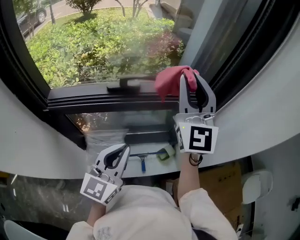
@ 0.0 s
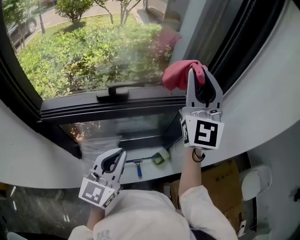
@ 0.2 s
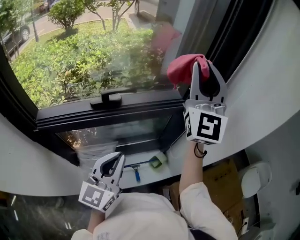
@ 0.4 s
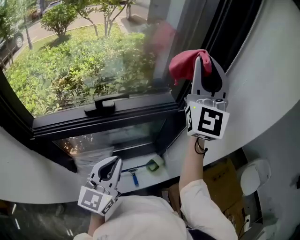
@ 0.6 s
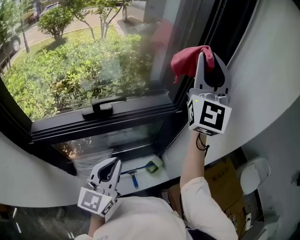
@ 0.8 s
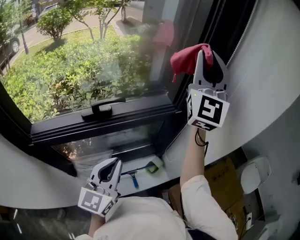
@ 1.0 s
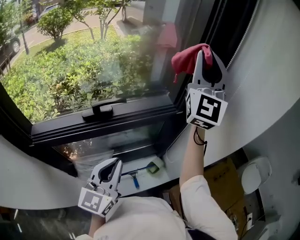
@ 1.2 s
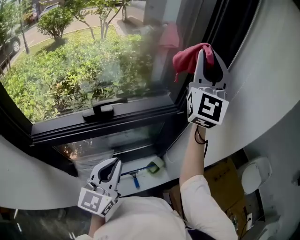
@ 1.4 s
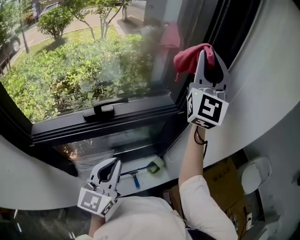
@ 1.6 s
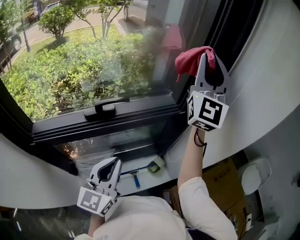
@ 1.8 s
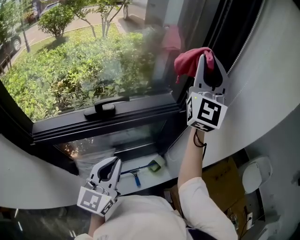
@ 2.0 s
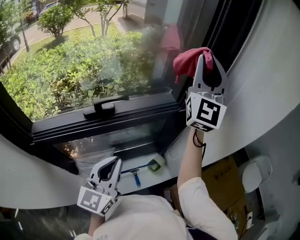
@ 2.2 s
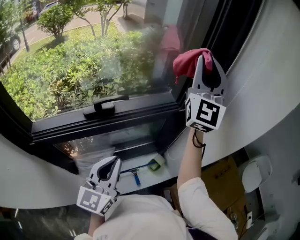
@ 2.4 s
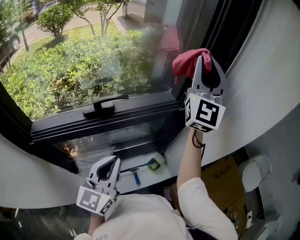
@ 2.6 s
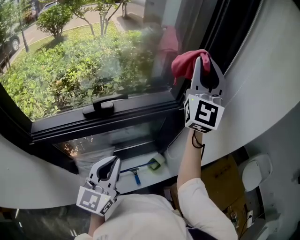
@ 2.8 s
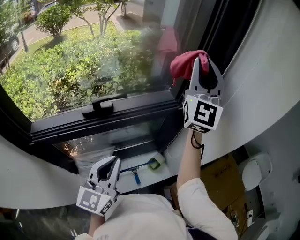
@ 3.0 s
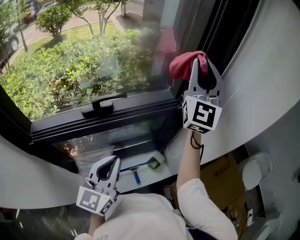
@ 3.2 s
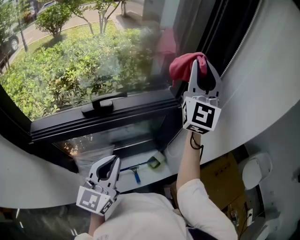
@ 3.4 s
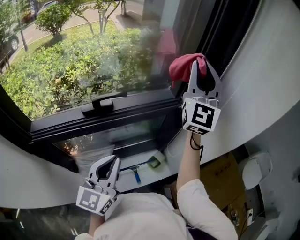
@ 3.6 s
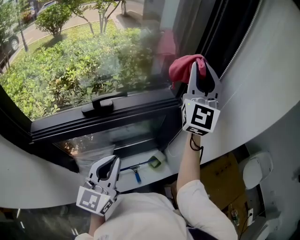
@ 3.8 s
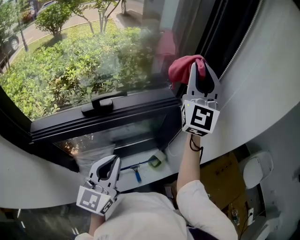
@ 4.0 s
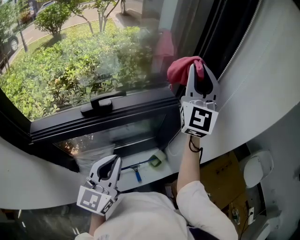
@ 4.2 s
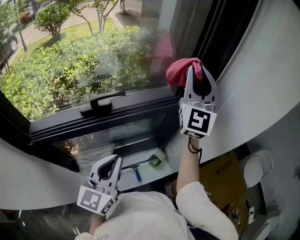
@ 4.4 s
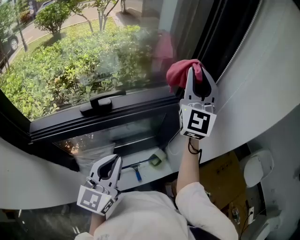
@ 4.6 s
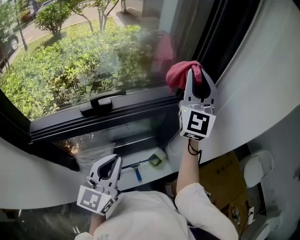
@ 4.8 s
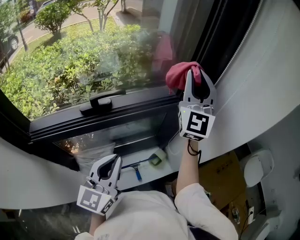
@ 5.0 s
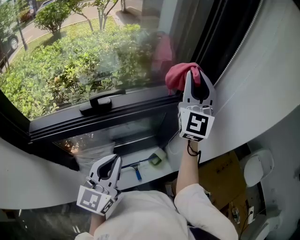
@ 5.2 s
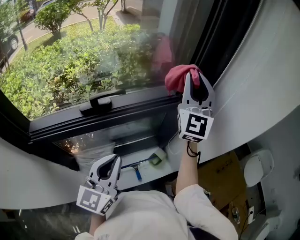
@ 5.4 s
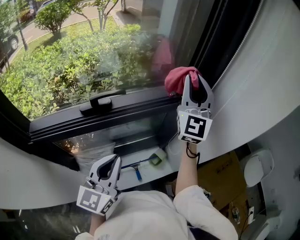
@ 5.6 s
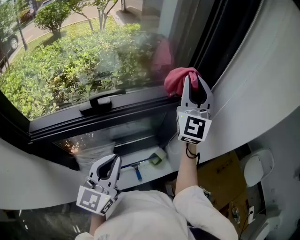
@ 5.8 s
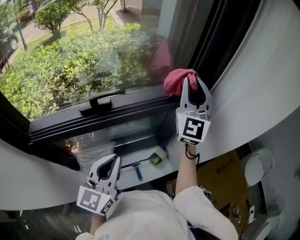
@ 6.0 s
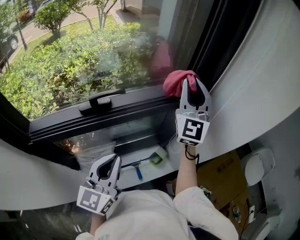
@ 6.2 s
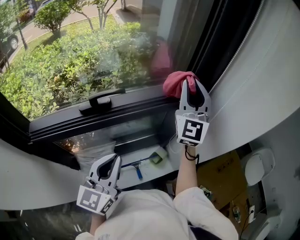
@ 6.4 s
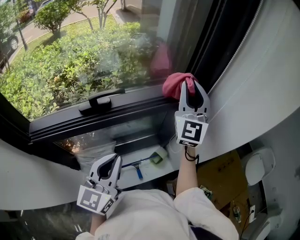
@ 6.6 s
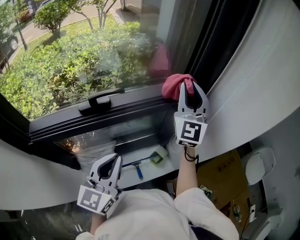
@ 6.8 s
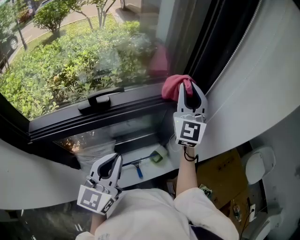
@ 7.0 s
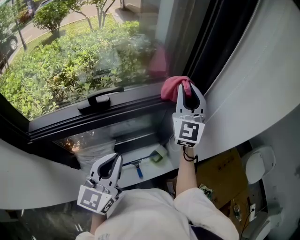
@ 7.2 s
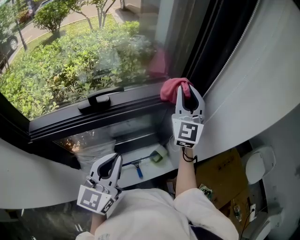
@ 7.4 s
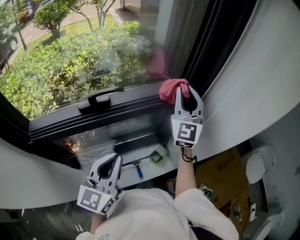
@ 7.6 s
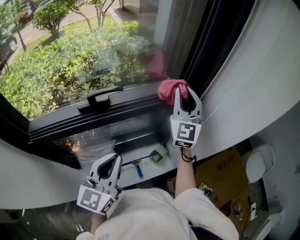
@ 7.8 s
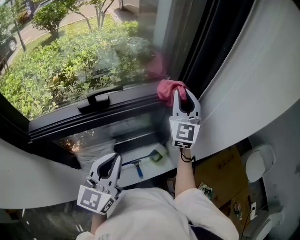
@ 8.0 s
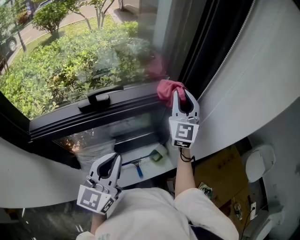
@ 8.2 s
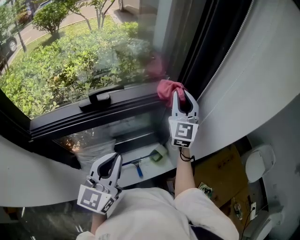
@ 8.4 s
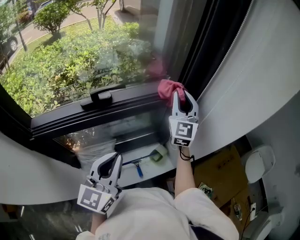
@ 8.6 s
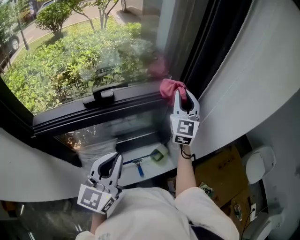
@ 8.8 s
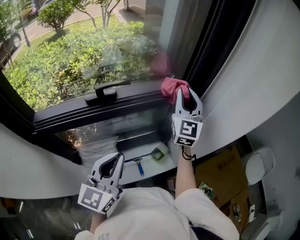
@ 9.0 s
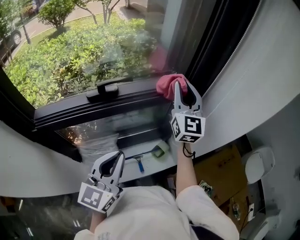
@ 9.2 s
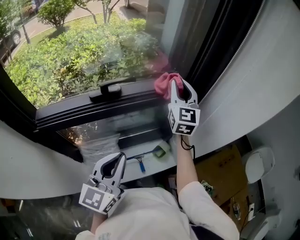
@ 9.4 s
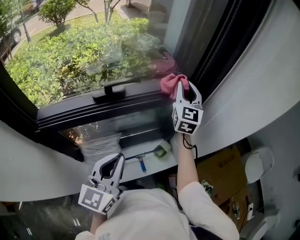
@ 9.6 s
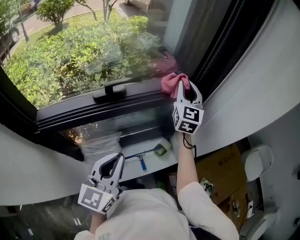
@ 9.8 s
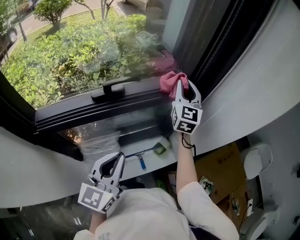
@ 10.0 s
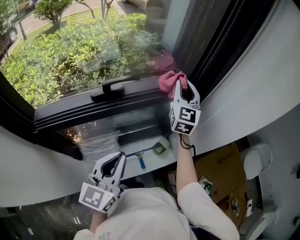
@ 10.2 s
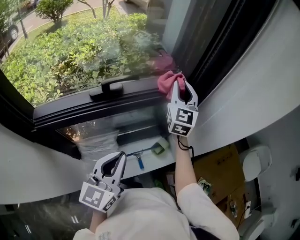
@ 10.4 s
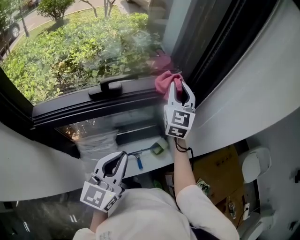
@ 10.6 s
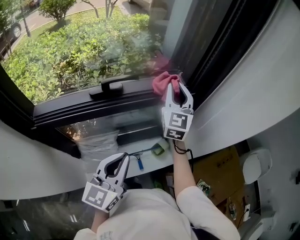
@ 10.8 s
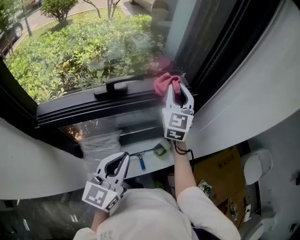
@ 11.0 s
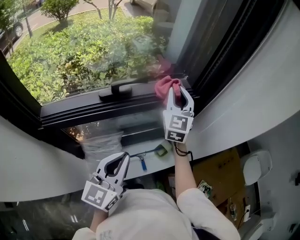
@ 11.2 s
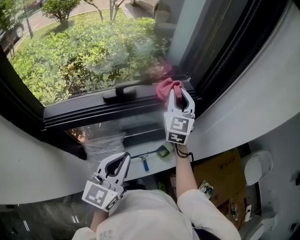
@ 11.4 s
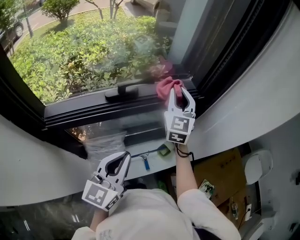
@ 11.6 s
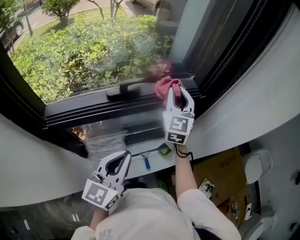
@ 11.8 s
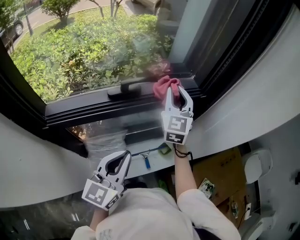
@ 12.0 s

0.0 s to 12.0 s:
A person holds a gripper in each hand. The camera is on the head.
0.0 to 1.6 s: The right gripper travels upward, to the right and forward by some 20 cm, and changes its angle by some 30 degrees.
1.6 to 3.0 s: The grippers stay close to where they were, moving slightly.
3.0 to 4.4 s: The grippers stay close to where they were, moving slightly.
4.4 to 6.0 s: The right gripper shifts approximately 5 cm downward.
6.0 to 7.6 s: The right gripper is displaced downward by about 5 cm.
7.6 to 9.0 s: The grippers stay close to where they were, moving slightly.
9.0 to 10.4 s: The right gripper changes place by about 5 cm.
10.4 to 12.0 s: The right gripper moves to the left, about 10 cm.

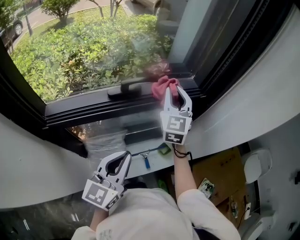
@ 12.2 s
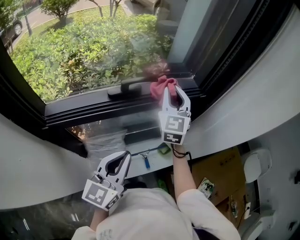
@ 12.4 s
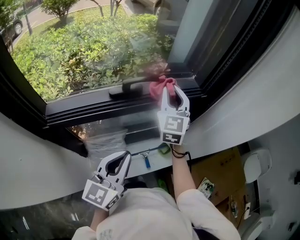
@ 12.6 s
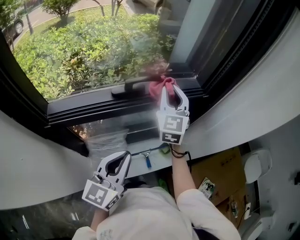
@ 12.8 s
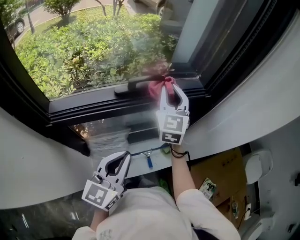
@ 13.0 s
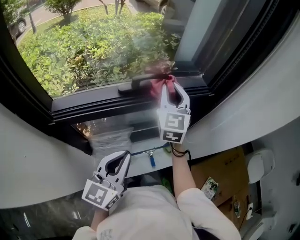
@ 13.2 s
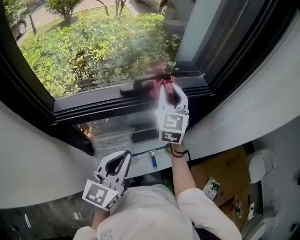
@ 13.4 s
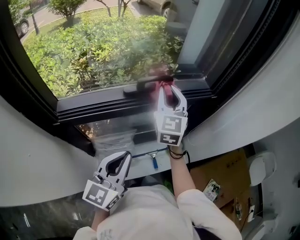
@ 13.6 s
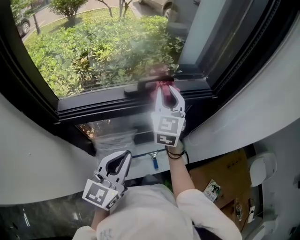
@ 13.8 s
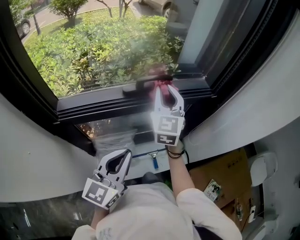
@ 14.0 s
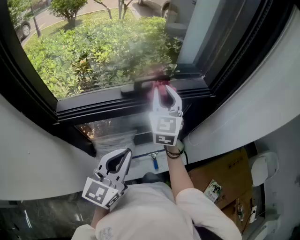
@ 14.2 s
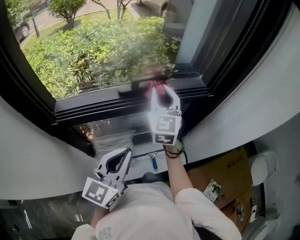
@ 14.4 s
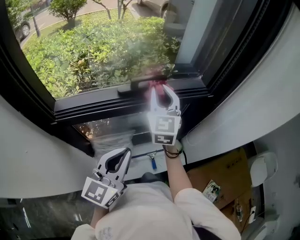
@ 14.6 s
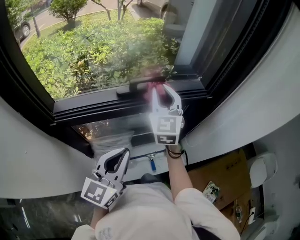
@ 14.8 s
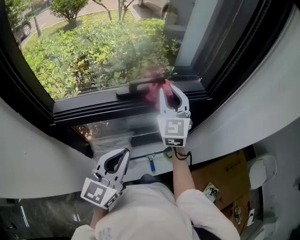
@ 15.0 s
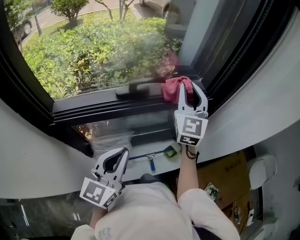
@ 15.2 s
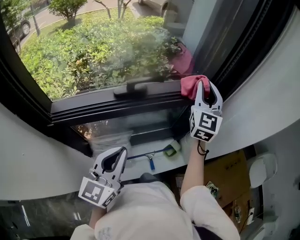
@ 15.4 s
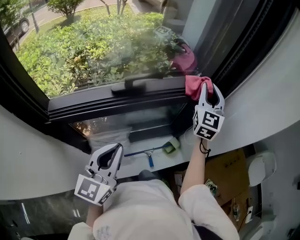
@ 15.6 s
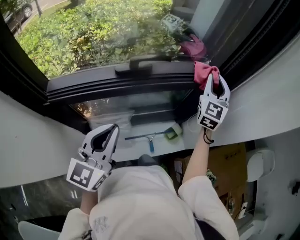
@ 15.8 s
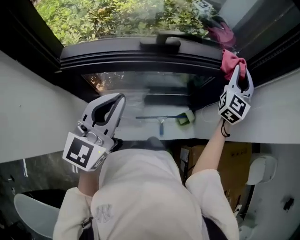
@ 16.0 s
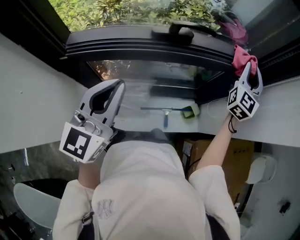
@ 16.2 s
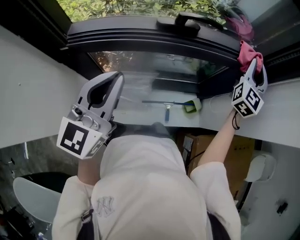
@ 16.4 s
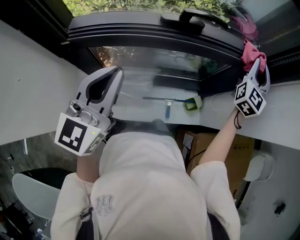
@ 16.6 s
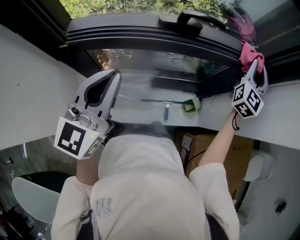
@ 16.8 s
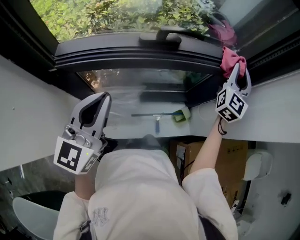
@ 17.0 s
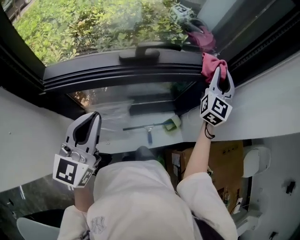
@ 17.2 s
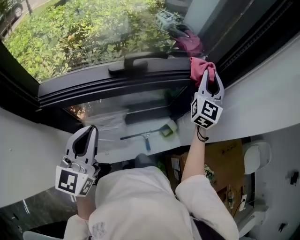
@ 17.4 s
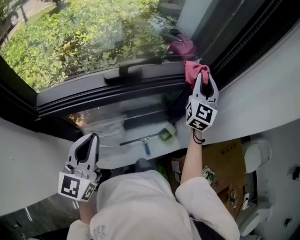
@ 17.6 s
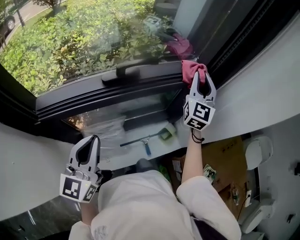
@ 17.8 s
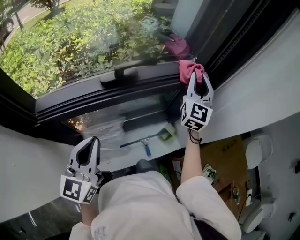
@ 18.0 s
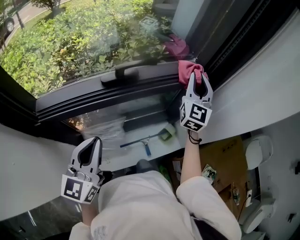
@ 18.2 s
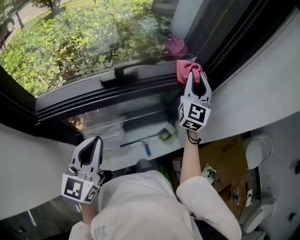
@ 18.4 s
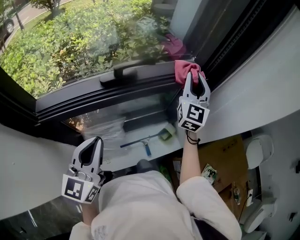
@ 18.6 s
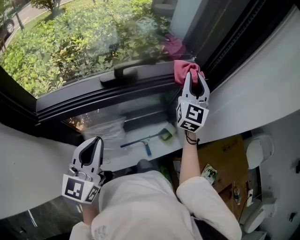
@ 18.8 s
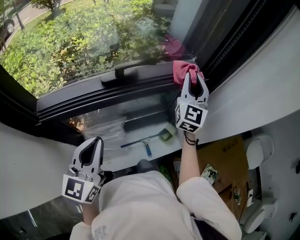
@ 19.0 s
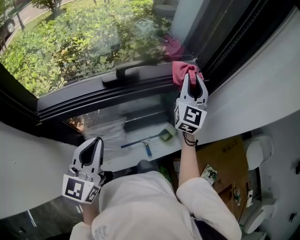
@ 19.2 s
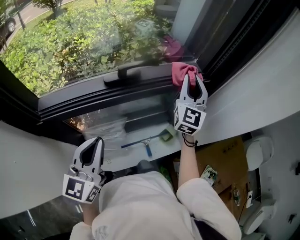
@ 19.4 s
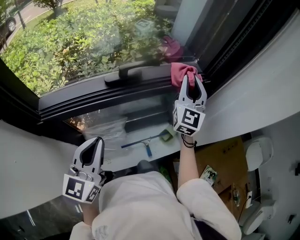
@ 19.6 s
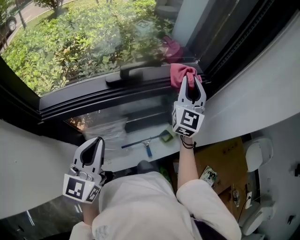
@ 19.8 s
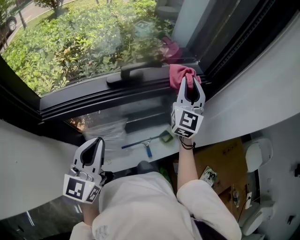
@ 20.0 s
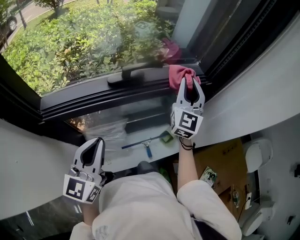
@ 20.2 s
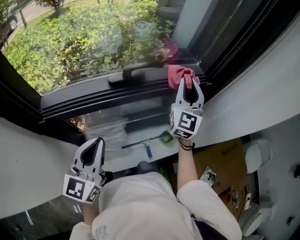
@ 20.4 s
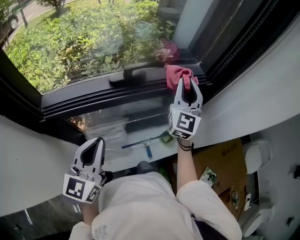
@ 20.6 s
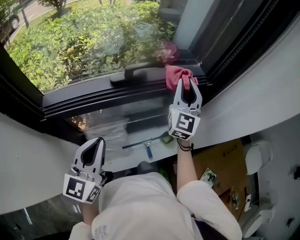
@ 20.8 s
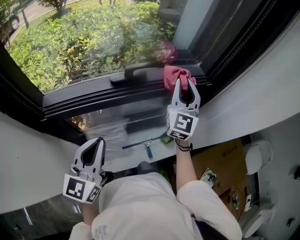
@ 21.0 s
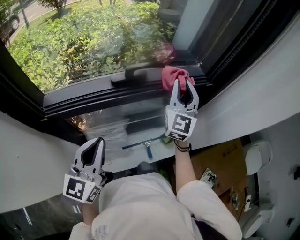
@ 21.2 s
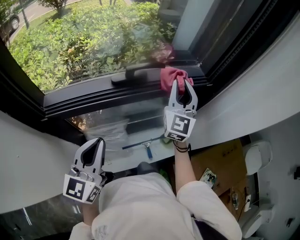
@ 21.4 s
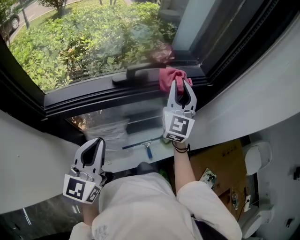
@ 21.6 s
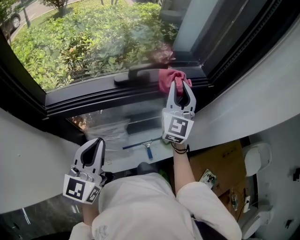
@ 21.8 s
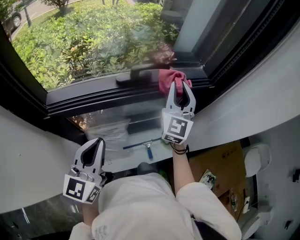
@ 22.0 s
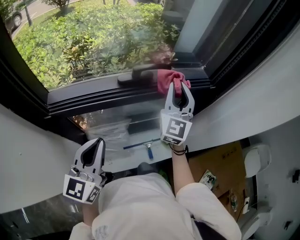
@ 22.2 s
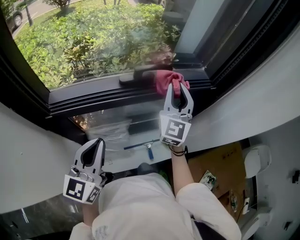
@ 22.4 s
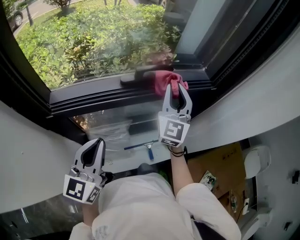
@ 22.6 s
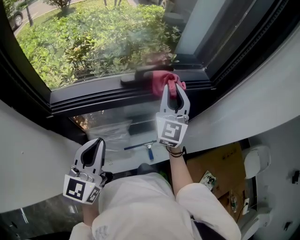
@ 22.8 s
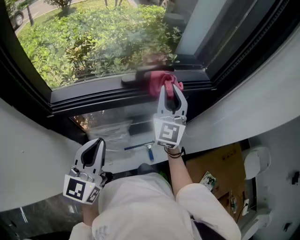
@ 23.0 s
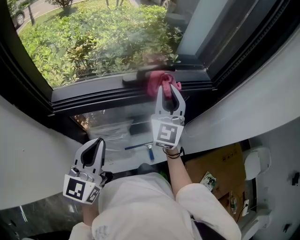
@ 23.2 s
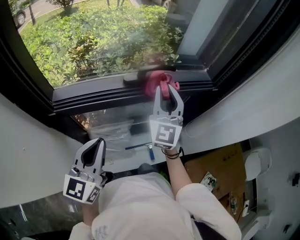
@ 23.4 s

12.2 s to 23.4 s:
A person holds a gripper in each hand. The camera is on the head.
12.2 to 13.8 s: The right gripper is displaced to the left by approximately 10 cm.
13.8 to 15.4 s: The right gripper goes approximately 15 cm to the right.
15.4 to 17.0 s: The left gripper goes about 10 cm to the left, while the right gripper heads downward, covering about 5 cm.
17.0 to 18.6 s: The grippers stay close to where they were, moving slightly.
18.6 to 20.2 s: The grippers stay close to where they were, moving slightly.
20.2 to 21.8 s: The right gripper changes place by some 5 cm.
21.8 to 23.4 s: The right gripper is displaced to the left by about 10 cm.

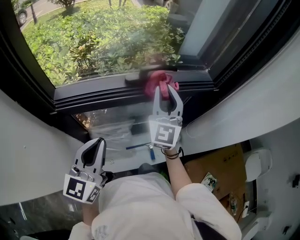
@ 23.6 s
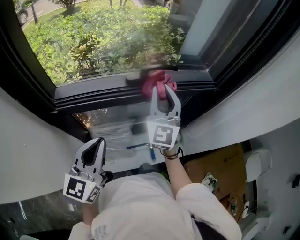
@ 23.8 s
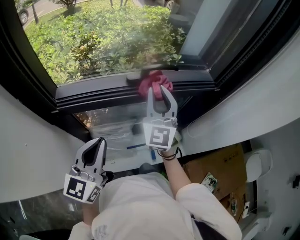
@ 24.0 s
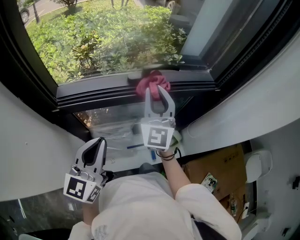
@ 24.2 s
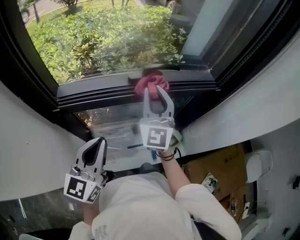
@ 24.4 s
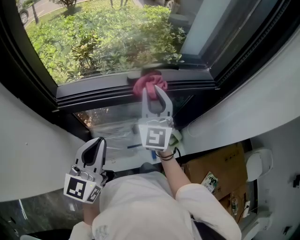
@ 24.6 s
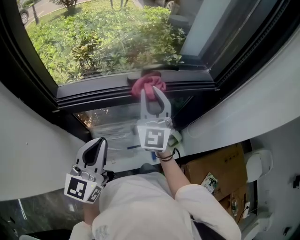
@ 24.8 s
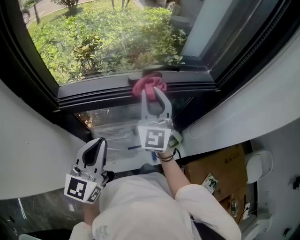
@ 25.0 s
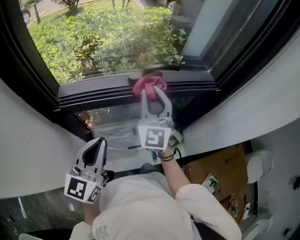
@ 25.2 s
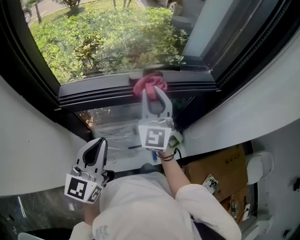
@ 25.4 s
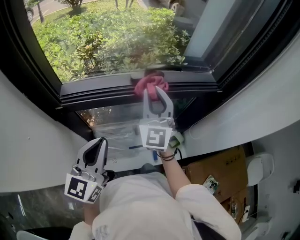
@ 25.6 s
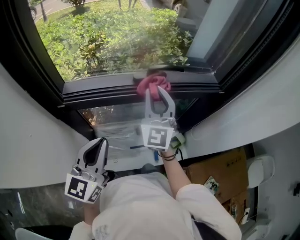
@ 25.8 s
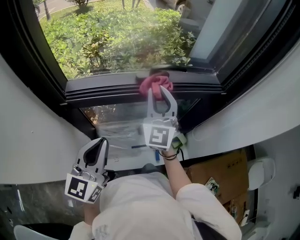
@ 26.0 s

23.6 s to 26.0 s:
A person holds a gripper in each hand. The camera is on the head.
23.6 to 24.8 s: The right gripper is displaced to the left by some 5 cm.
24.8 to 26.0 s: The grippers stay close to where they were, moving slightly.
